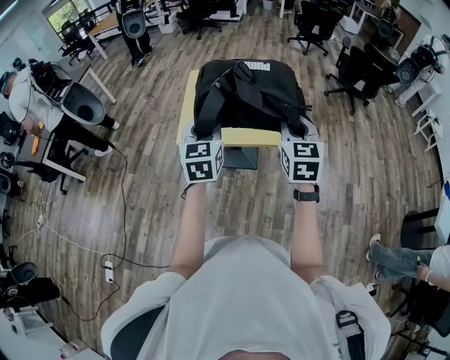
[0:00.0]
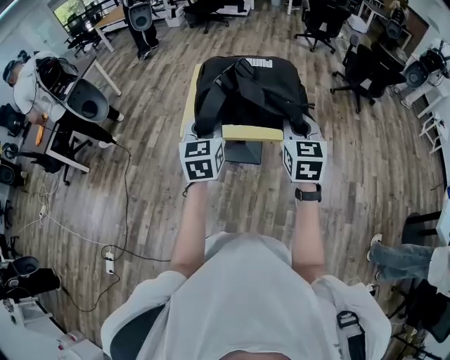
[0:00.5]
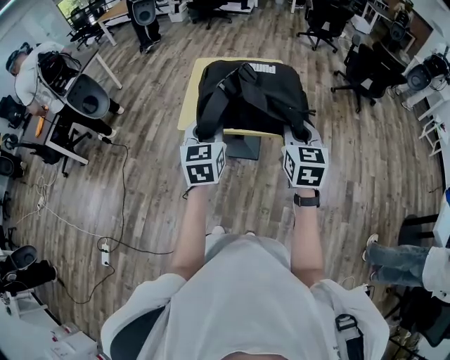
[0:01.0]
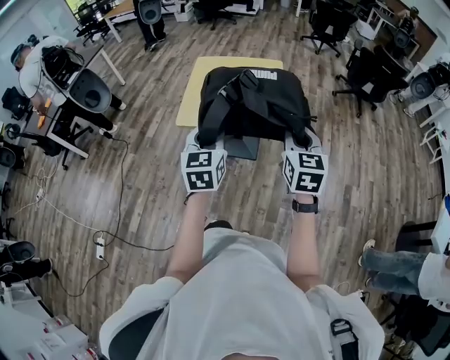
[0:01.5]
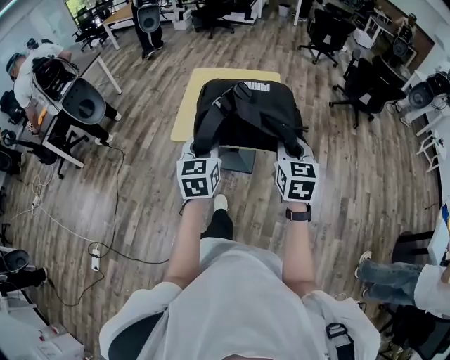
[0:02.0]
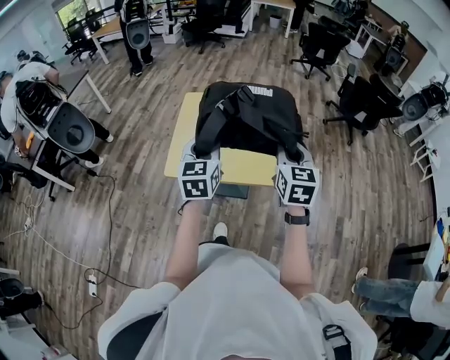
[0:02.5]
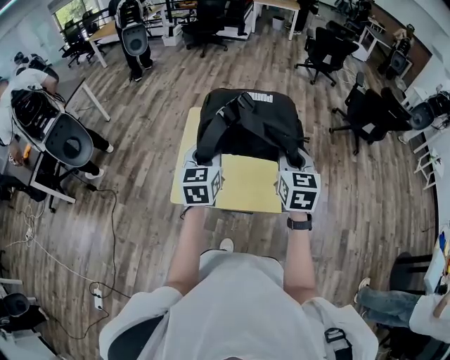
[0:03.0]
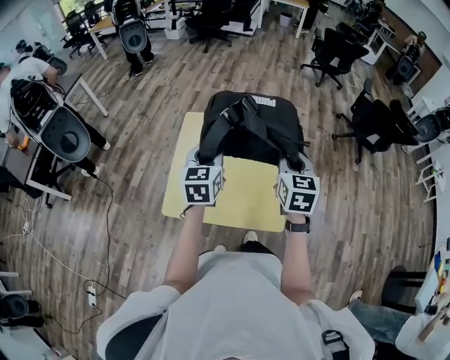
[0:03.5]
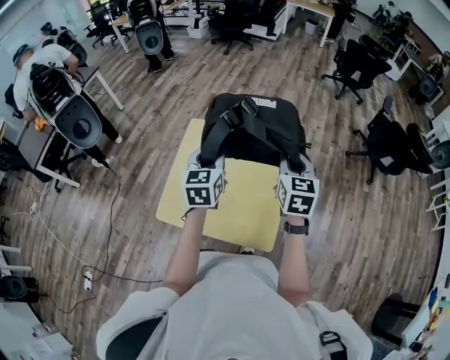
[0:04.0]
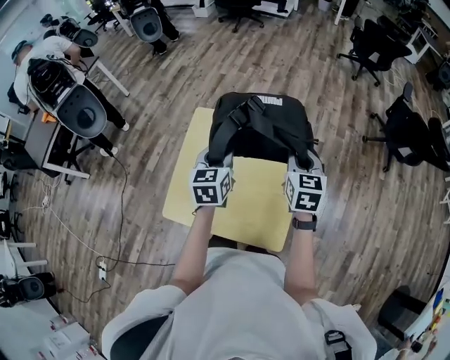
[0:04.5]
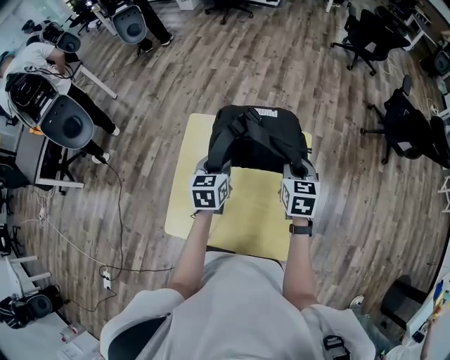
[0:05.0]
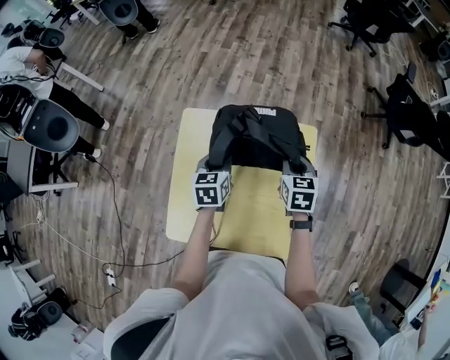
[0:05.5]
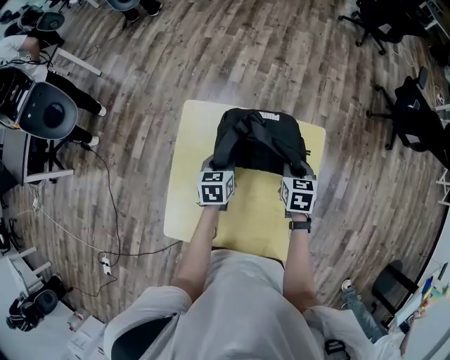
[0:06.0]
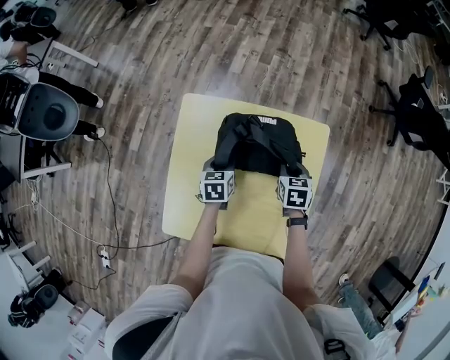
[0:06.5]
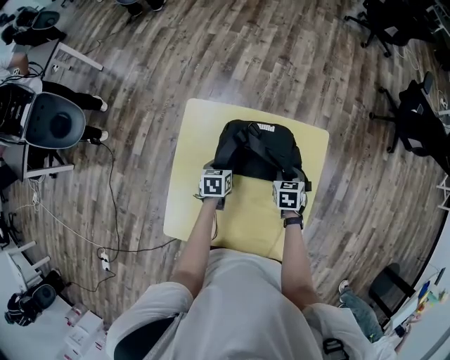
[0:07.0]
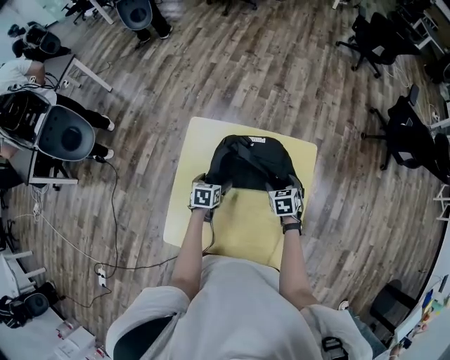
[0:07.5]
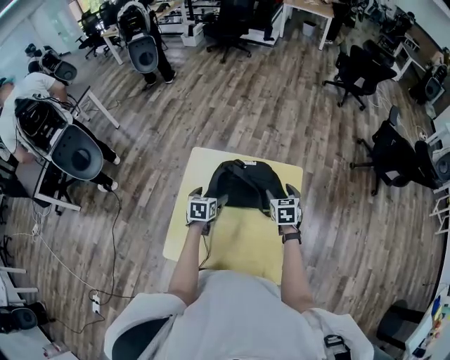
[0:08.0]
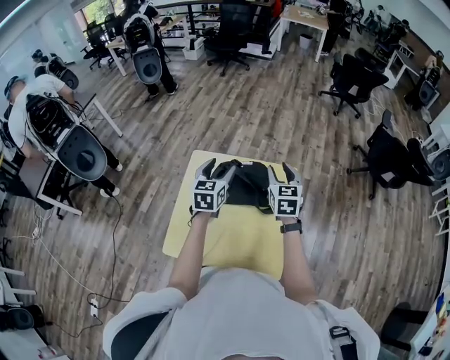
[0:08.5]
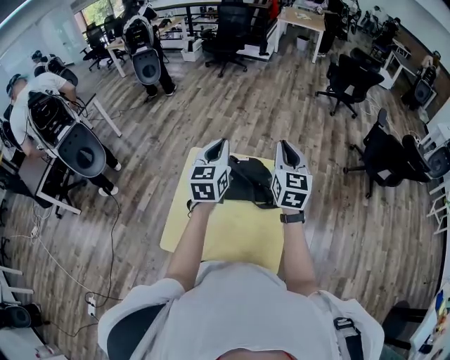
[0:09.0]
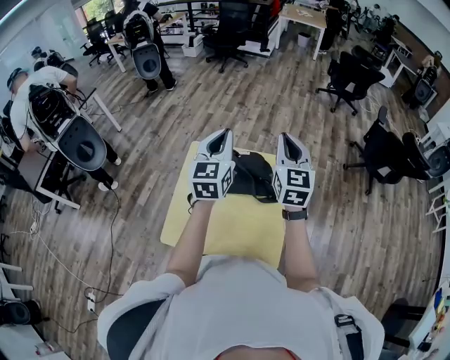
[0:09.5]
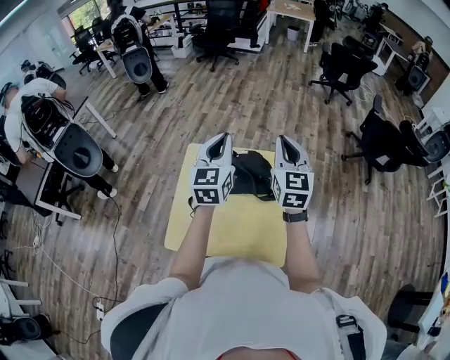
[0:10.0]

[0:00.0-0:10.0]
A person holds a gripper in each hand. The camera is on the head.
0:00.0 to 0:02.0: The right gripper ends up some 5 cm from where it was. The left gripper changes place by some 5 cm.
0:02.0 to 0:04.0: The pair of grippers is taken forward, some 40 cm.
0:04.0 to 0:06.0: Both grippers move downward and forward, some 30 cm. The right gripper changes its angle by about 30 degrees, while the left gripper turns by about 30 degrees.
0:06.0 to 0:08.0: The left gripper goes downward and returns, approximately 10 cm each way, and opens. Meanwhile the right gripper reaches approximately 10 cm downward, then returns, and opens up.
0:08.0 to 0:10.0: The grippers both shift upward by roughly 30 cm. The right gripper tips its fingers upward by some 40 degrees, and closes its fingers; the left gripper angles its fingers upward, by roughly 40 degrees, and closes up.

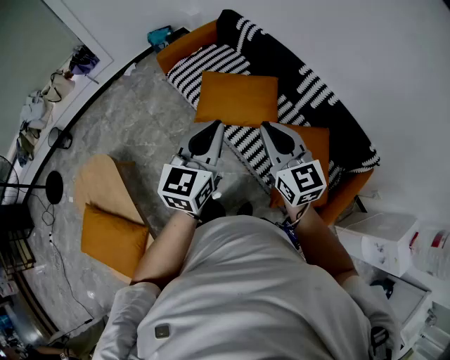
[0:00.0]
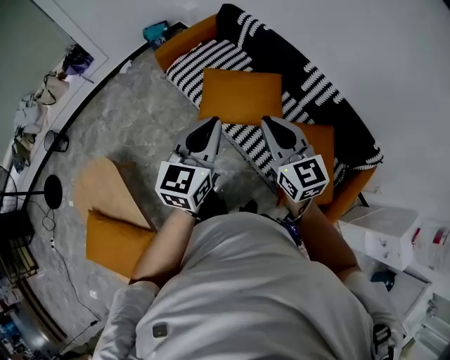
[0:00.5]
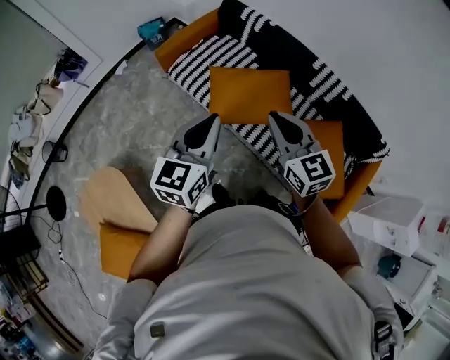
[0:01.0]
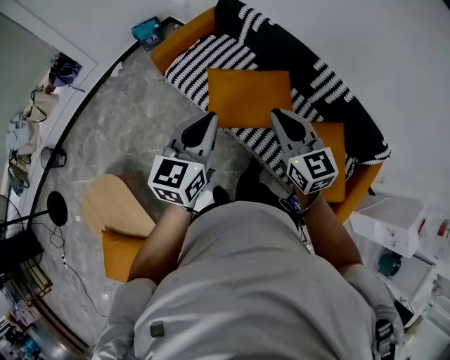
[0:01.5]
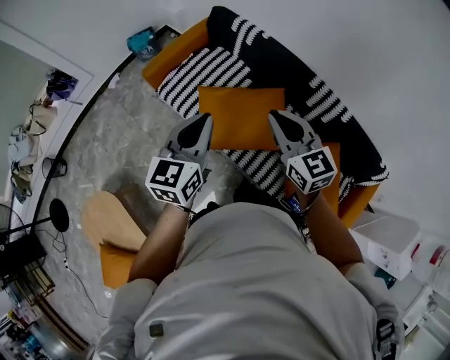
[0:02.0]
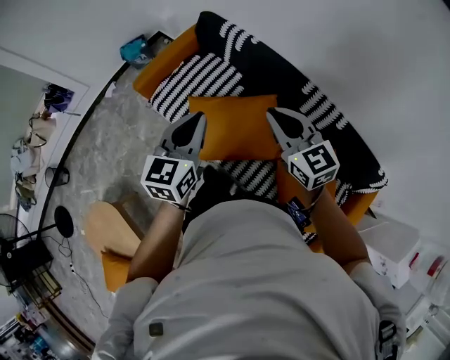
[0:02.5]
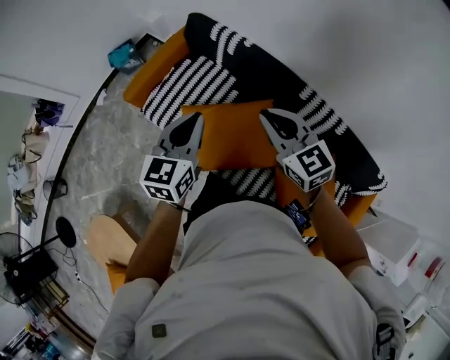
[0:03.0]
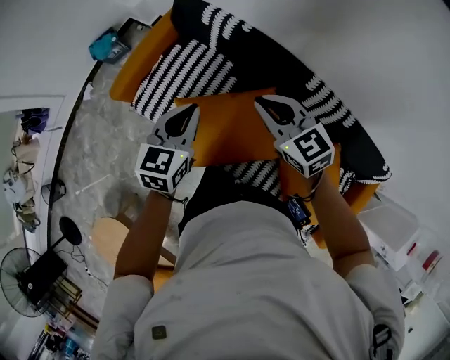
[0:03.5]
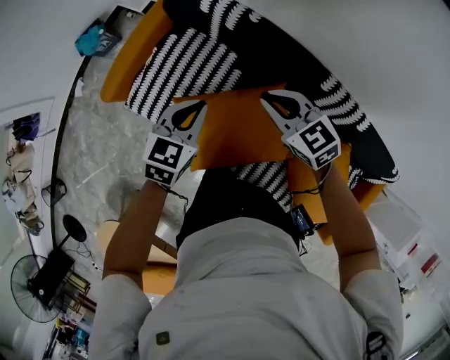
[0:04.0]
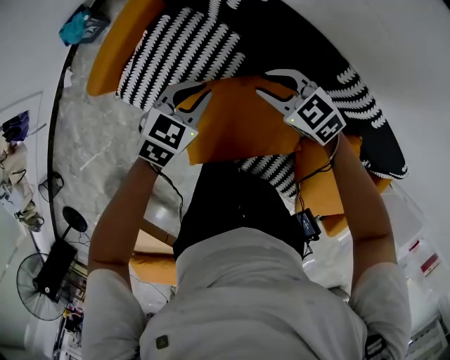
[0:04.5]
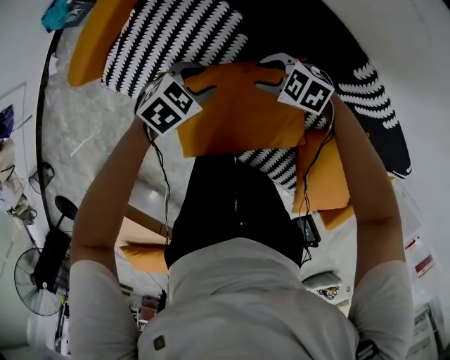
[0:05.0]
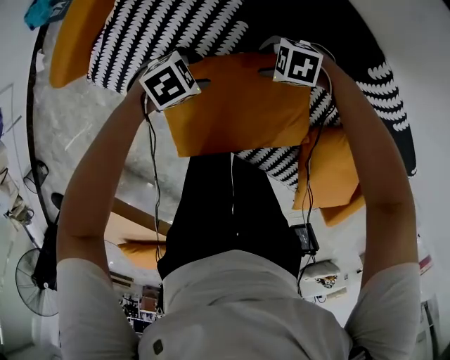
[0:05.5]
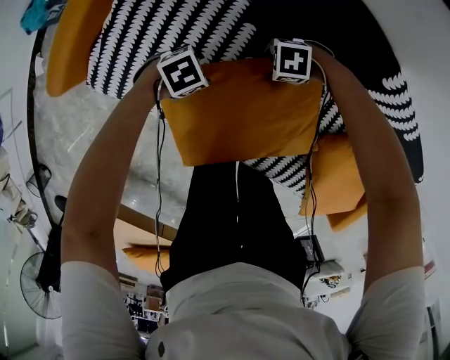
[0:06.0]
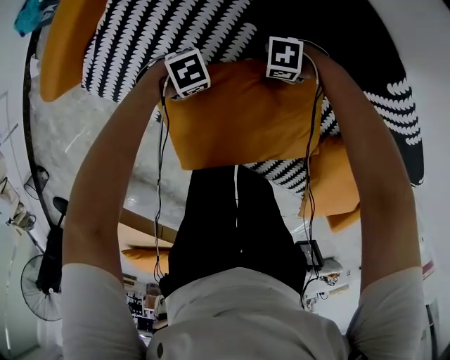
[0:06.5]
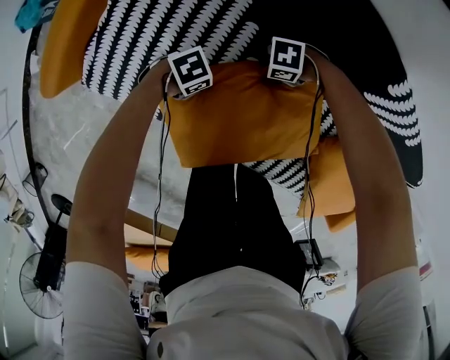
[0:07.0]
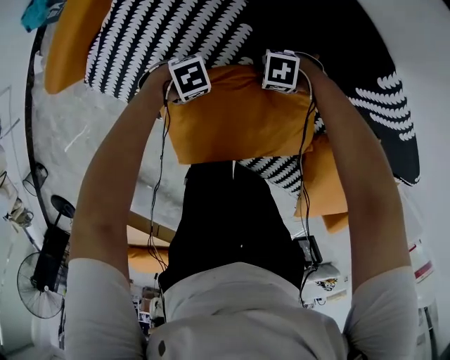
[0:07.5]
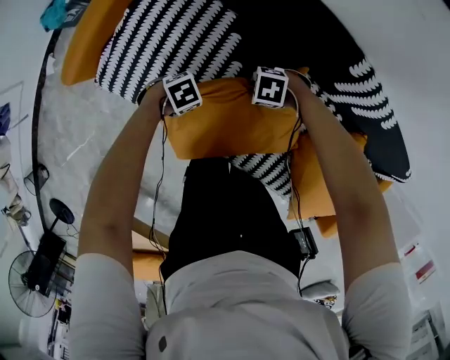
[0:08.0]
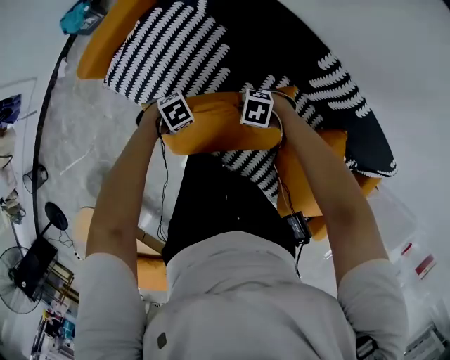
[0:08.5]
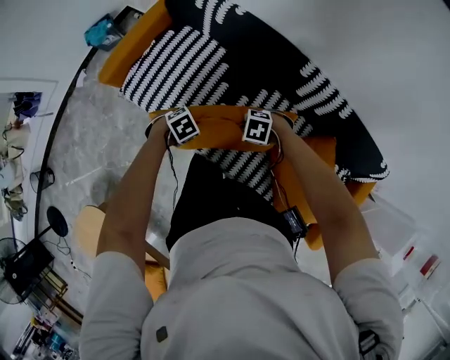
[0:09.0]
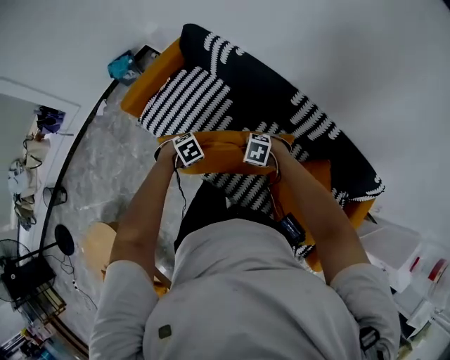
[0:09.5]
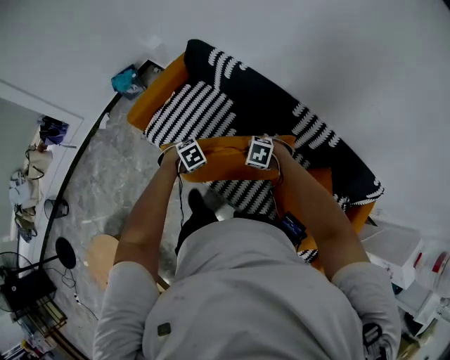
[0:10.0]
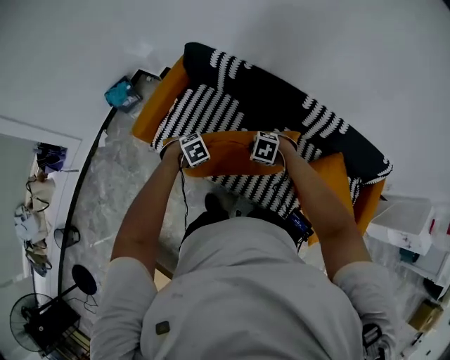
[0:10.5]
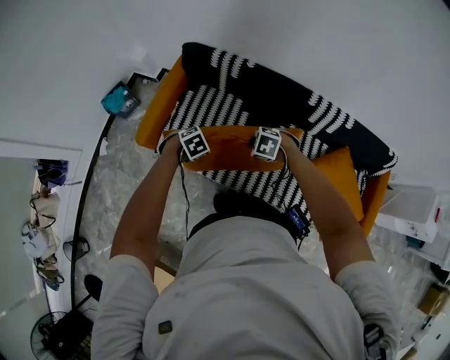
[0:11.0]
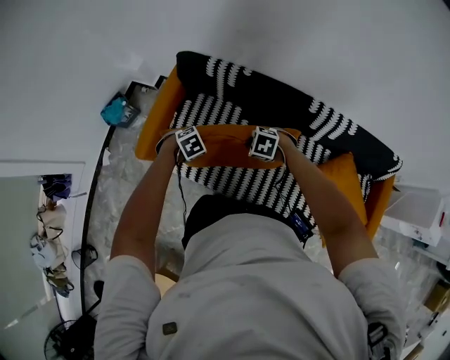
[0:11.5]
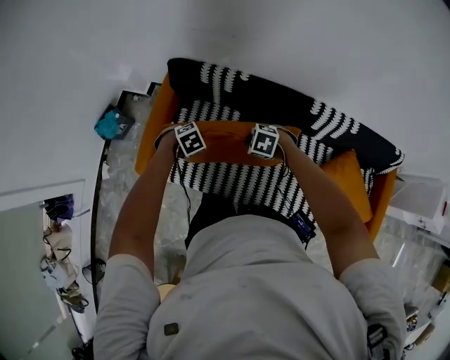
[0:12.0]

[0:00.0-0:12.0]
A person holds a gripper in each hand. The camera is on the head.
0:00.0 to 0:02.0: The two grippers go approximately 30 cm forward.
0:02.0 to 0:04.0: Both grippers move forward and downward, about 40 cm. The left gripper rotates roughly 30 degrees. The right gripper swivels approximately 20 degrees.
0:04.0 to 0:06.0: The two grippers go about 40 cm downward. The left gripper turns by about 60 degrees, and opens up. The right gripper changes its angle by approximately 70 degrees, and opens its fingers.
0:06.0 to 0:08.0: The left gripper shifts some 10 cm forward, and closes up; the right gripper travels forward and upward by roughly 10 cm, and closes up.
0:08.0 to 0:10.0: The two grippers go approximately 30 cm upward. The left gripper changes its angle by roughly 30 degrees. The right gripper changes its angle by some 20 degrees.
0:10.0 to 0:12.0: The left gripper changes place by about 30 cm, and rotates approximately 30 degrees, while the right gripper changes place by about 25 cm, and swivels some 20 degrees.

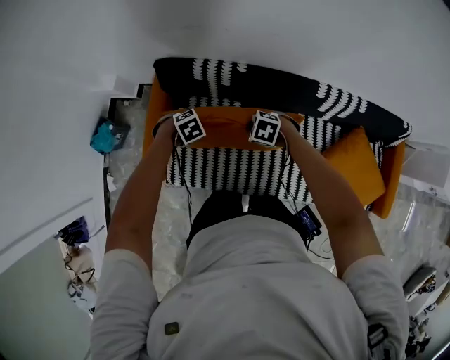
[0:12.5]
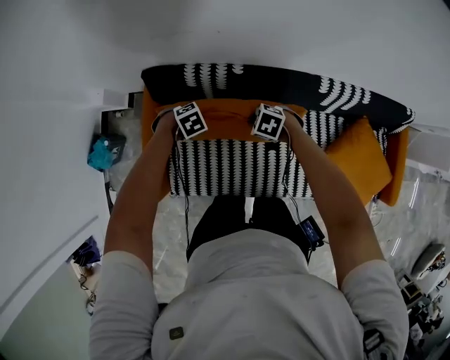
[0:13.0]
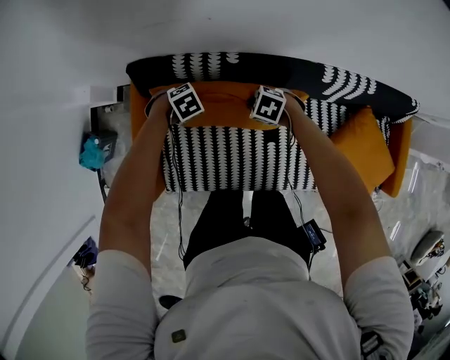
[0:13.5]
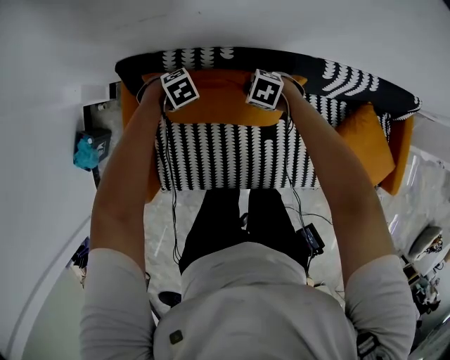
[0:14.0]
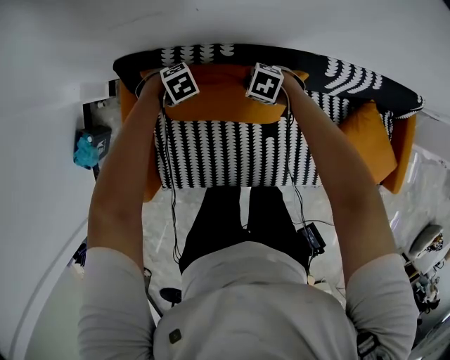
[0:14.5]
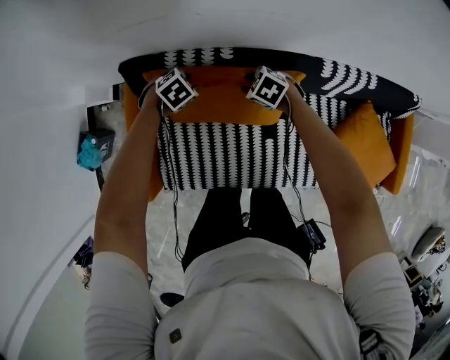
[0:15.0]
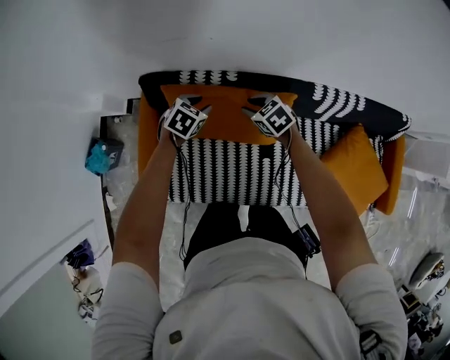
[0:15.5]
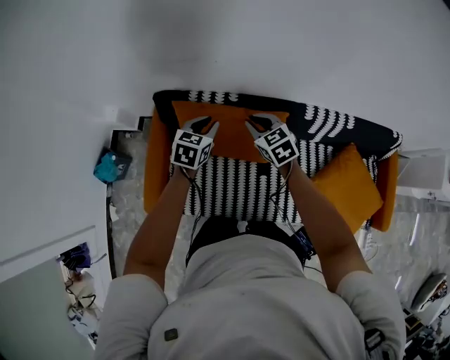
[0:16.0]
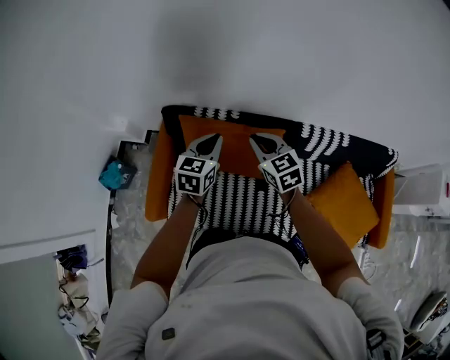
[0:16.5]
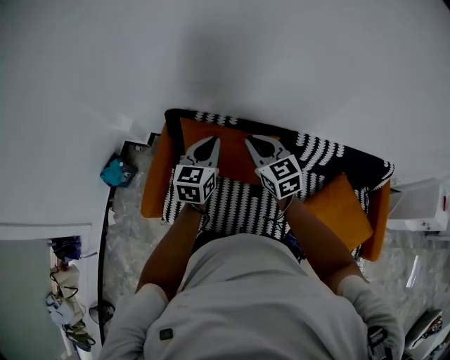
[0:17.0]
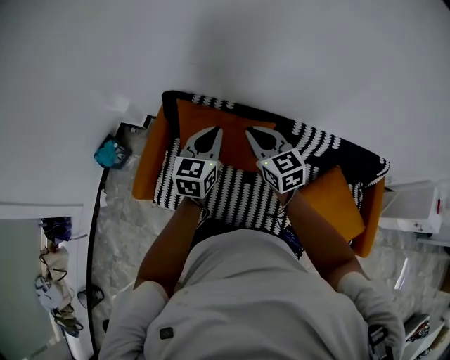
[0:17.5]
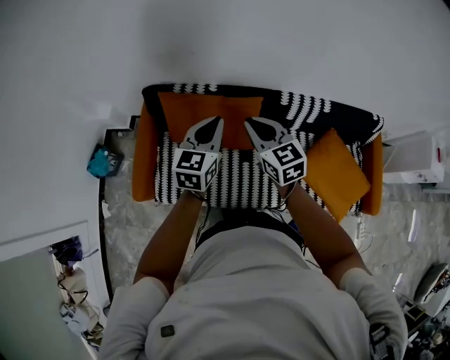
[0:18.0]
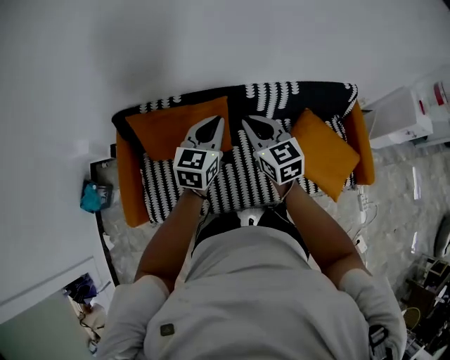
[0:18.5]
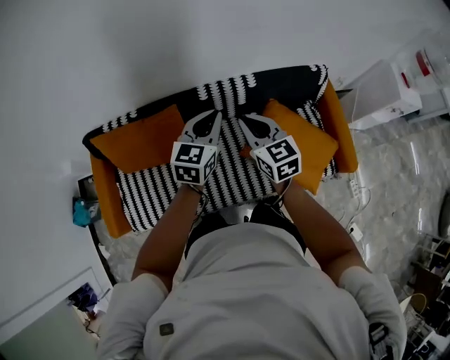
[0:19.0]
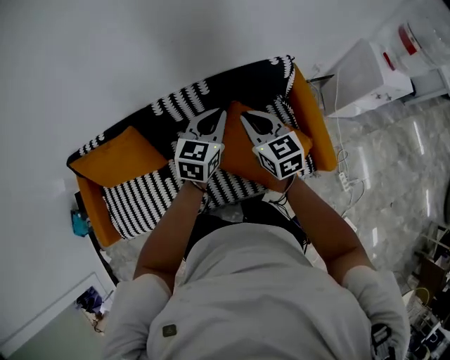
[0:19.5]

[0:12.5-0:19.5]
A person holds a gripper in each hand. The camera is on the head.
0:12.5 to 0:14.5: The right gripper moves roughly 20 cm, while the left gripper changes place by roughly 20 cm.
0:14.5 to 0:16.0: The grippers both shift upward by about 30 cm. The left gripper tips its fingers upward by approximately 40 degrees, while the right gripper points its fingers roughly 30 degrees further upward.
0:16.0 to 0:17.5: Both grippers travel together upward and backward, about 20 cm. The left gripper rotates about 30 degrees. Meanwhile the right gripper turns by some 20 degrees.
0:17.5 to 0:19.5: The two grippers travel together, some 60 cm. The right gripper changes its angle by about 30 degrees; the left gripper changes its angle by some 40 degrees.
